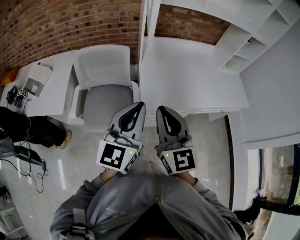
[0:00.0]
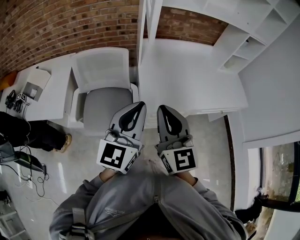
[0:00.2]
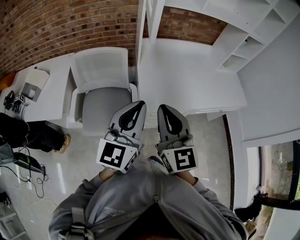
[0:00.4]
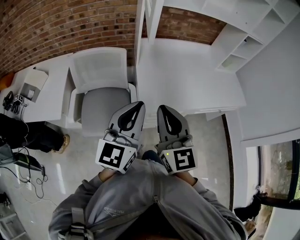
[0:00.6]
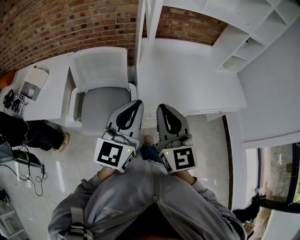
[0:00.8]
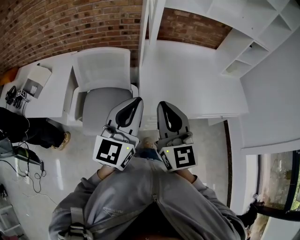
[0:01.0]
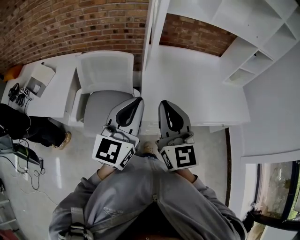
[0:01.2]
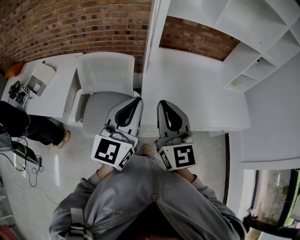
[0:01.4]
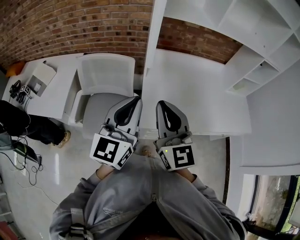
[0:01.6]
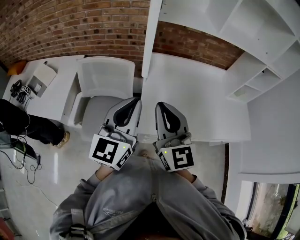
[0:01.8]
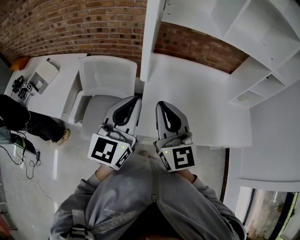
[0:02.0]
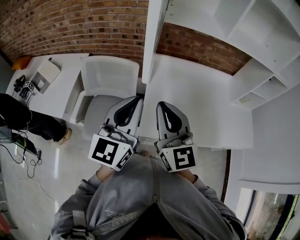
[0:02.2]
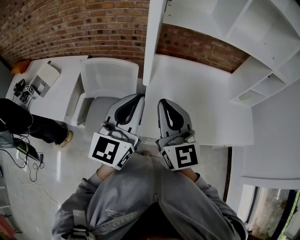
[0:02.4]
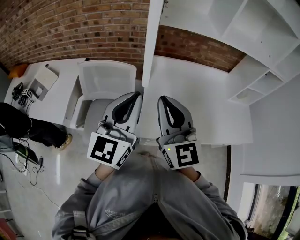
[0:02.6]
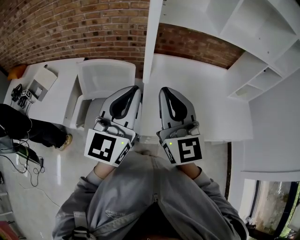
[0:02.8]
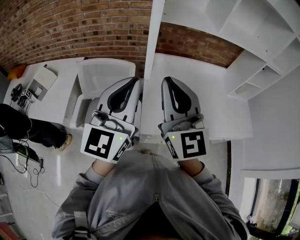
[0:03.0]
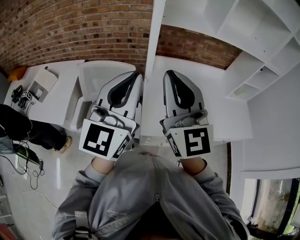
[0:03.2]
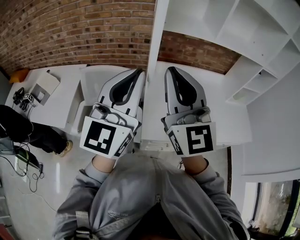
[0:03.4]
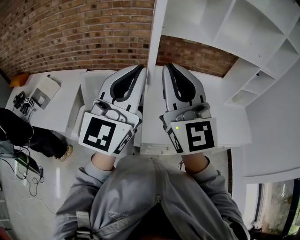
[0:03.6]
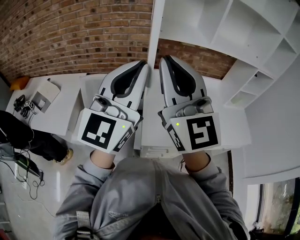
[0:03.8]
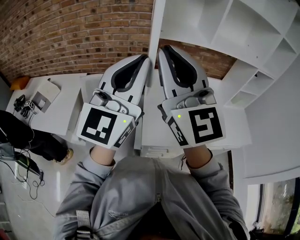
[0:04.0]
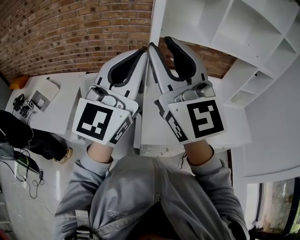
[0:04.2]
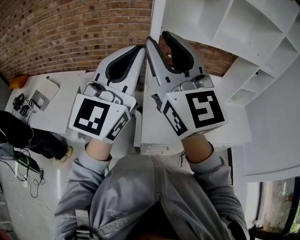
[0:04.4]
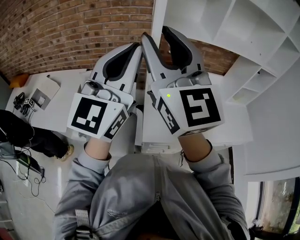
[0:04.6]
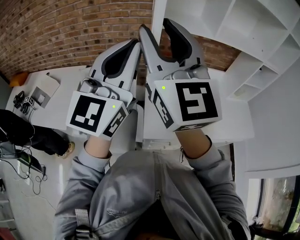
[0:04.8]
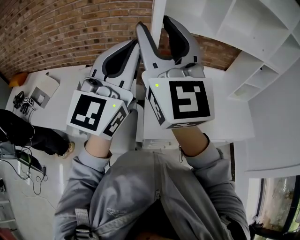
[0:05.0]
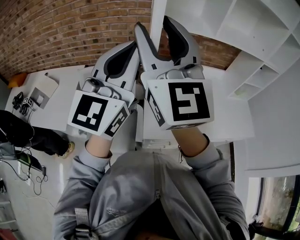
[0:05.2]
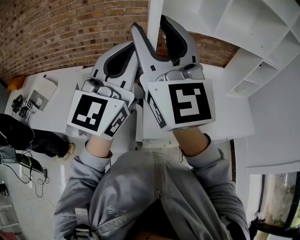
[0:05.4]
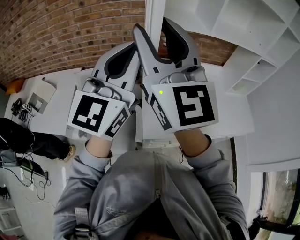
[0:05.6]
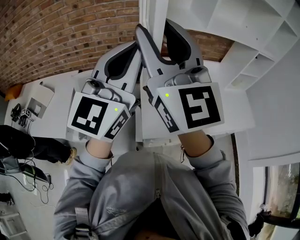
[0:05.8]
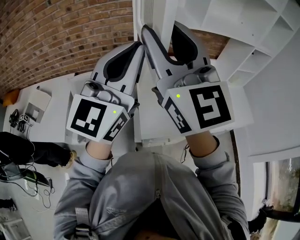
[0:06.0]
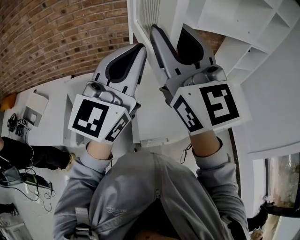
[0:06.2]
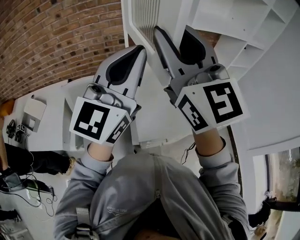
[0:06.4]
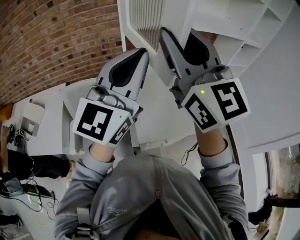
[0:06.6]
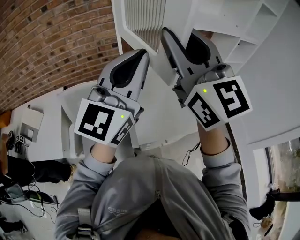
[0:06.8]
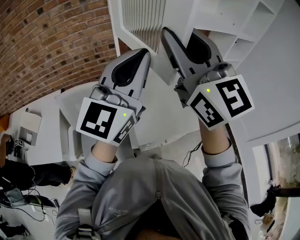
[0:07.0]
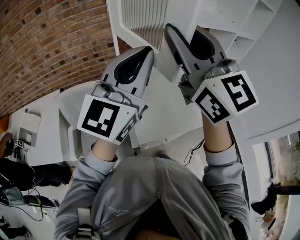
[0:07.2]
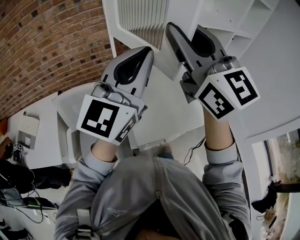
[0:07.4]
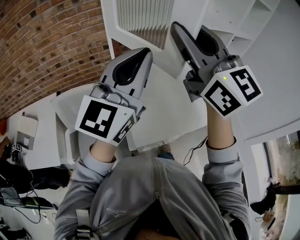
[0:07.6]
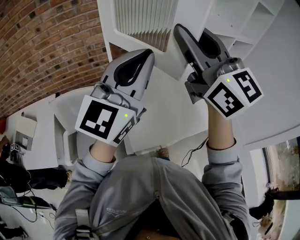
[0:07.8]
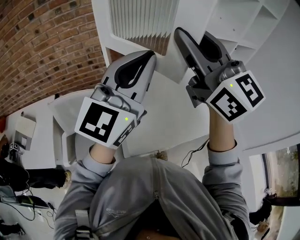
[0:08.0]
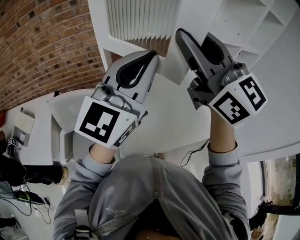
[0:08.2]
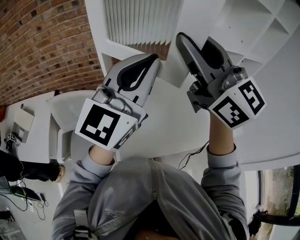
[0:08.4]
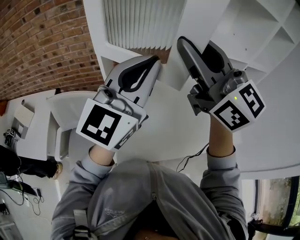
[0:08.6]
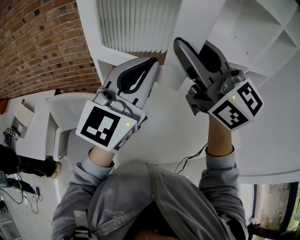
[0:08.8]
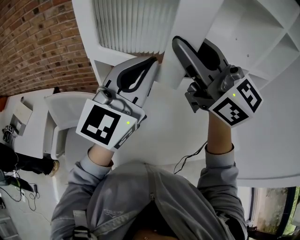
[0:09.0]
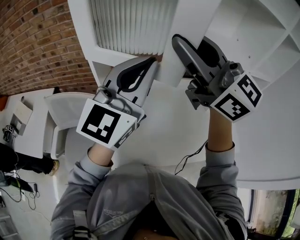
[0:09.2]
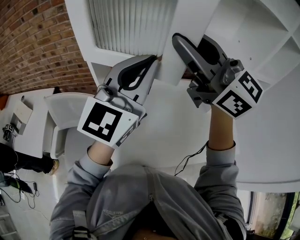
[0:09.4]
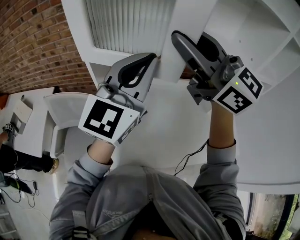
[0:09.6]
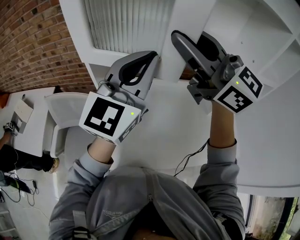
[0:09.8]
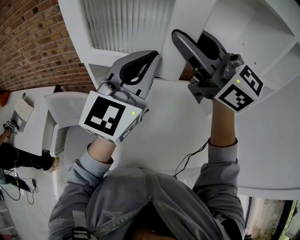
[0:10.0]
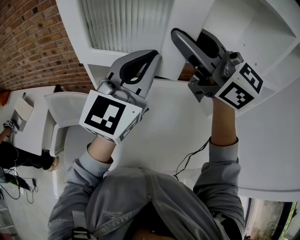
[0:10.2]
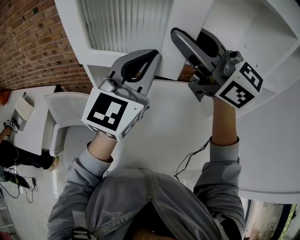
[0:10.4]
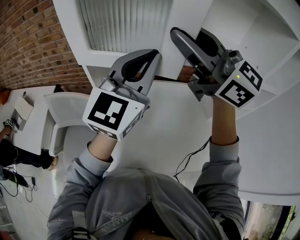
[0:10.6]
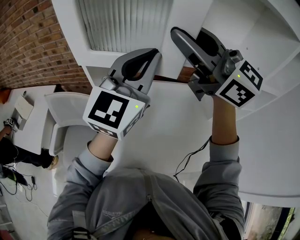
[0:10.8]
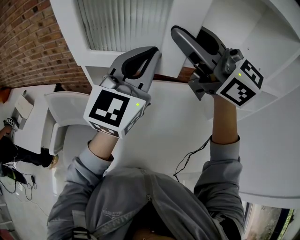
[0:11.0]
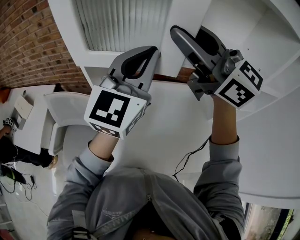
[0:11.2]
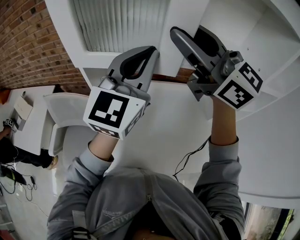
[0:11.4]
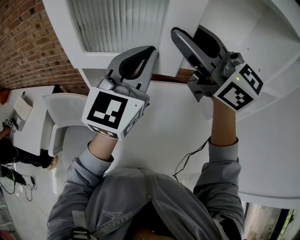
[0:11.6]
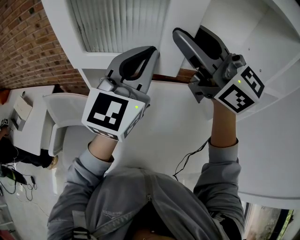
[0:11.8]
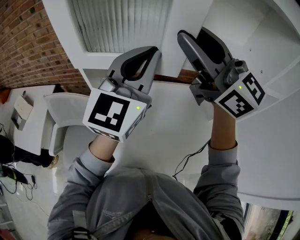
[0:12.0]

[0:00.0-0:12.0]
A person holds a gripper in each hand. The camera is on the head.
0:00.0 to 0:01.6: The two grippers go roughly 10 cm forward.
0:01.6 to 0:03.0: The left gripper shifts some 10 cm upward, while the right gripper moves upward and forward, some 10 cm.
0:03.0 to 0:04.4: The grippers both shift upward by about 10 cm. The right gripper opens.
0:04.4 to 0:06.0: The grippers stay close to where they were, moving slightly.
0:06.0 to 0:07.6: The right gripper is displaced to the right and forward by approximately 10 cm, while the left gripper moves to the right, some 5 cm.
0:07.6 to 0:09.0: Both grippers move forward and to the right, approximately 15 cm. The right gripper swivels approximately 20 degrees.
0:09.0 to 0:10.4: The grippers both shift forward by roughly 5 cm.
0:10.4 to 0:12.0: There are only small adjustments of the grippers.

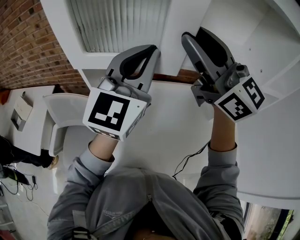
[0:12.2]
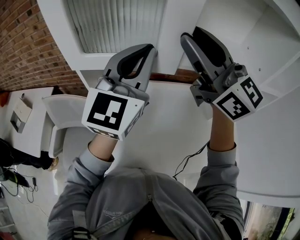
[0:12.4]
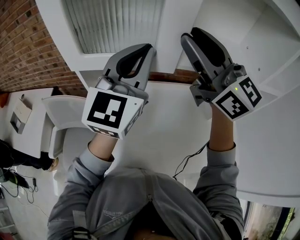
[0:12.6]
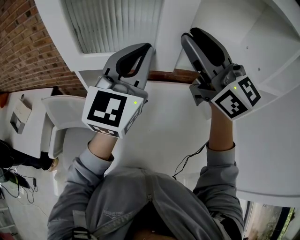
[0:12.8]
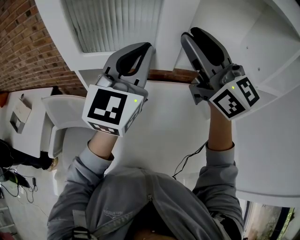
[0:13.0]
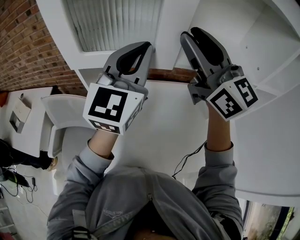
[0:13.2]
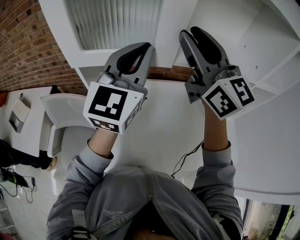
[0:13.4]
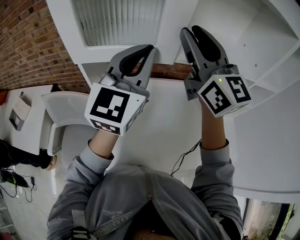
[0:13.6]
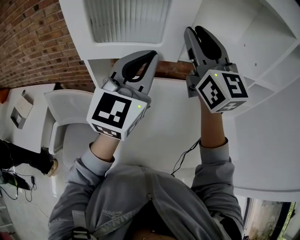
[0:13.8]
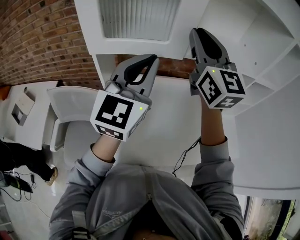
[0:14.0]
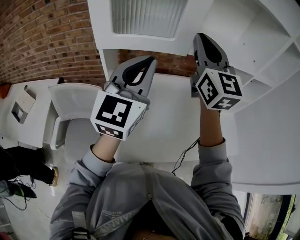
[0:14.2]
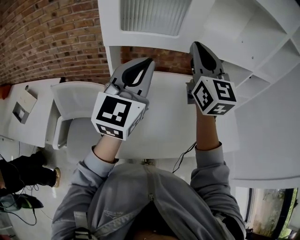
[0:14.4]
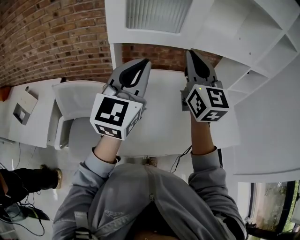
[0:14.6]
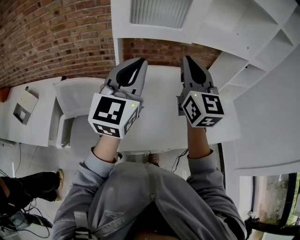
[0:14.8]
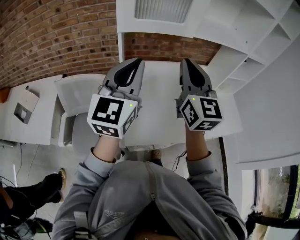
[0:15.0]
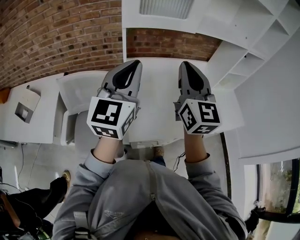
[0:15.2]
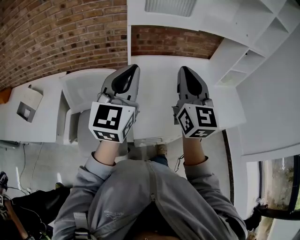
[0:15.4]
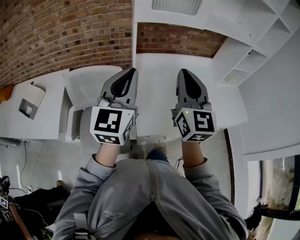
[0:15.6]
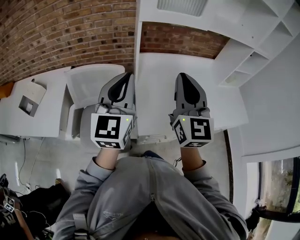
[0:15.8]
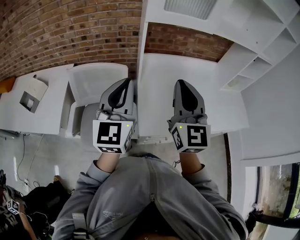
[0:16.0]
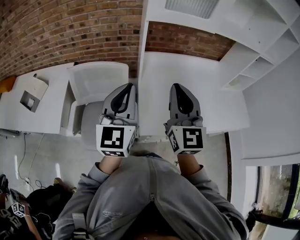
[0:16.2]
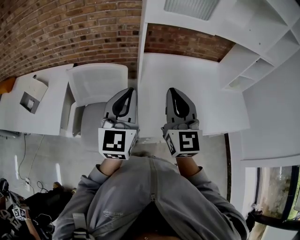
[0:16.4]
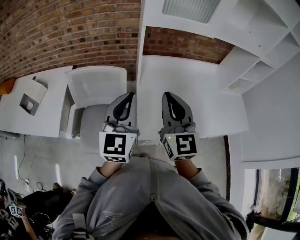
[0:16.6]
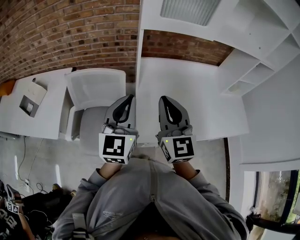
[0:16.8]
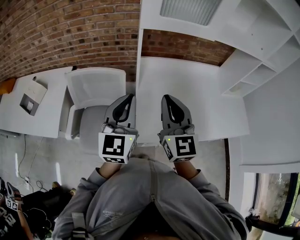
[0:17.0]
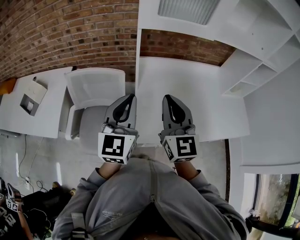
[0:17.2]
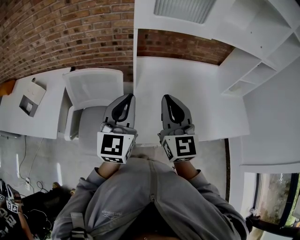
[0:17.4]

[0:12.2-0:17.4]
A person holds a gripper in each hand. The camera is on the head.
0:12.2 to 0:14.0: The left gripper moves backward, roughly 5 cm. Meanwhile the right gripper swivels roughly 30 degrees.
0:14.0 to 0:15.6: The left gripper is displaced backward, to the left and downward by roughly 25 cm. Meanwhile the right gripper is displaced backward, downward and to the left by roughly 30 cm.
0:15.6 to 0:17.4: Both grippers move downward, some 5 cm.

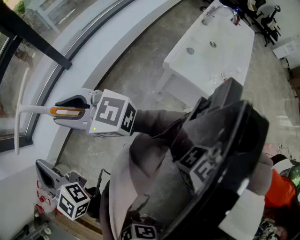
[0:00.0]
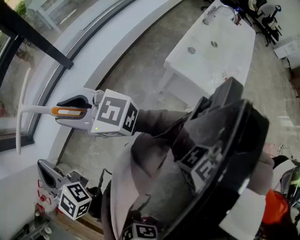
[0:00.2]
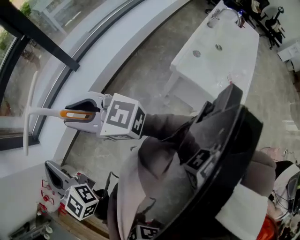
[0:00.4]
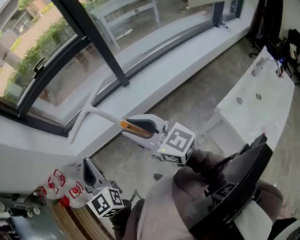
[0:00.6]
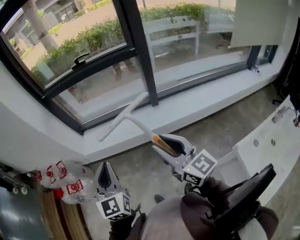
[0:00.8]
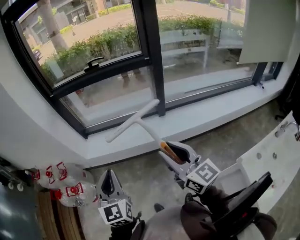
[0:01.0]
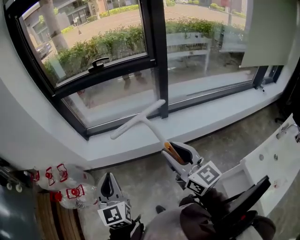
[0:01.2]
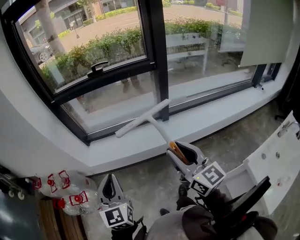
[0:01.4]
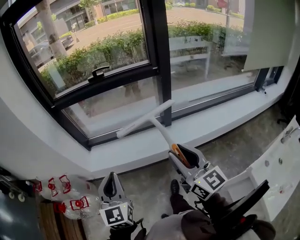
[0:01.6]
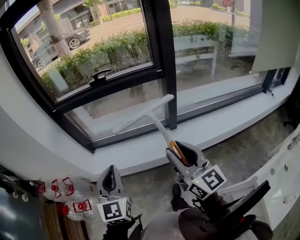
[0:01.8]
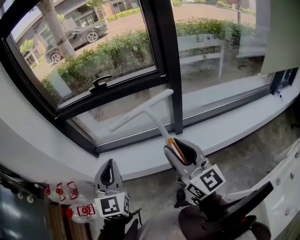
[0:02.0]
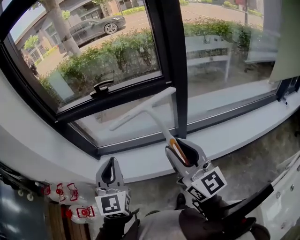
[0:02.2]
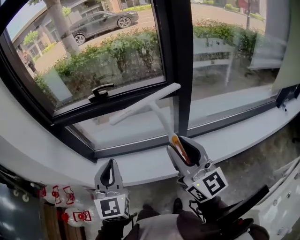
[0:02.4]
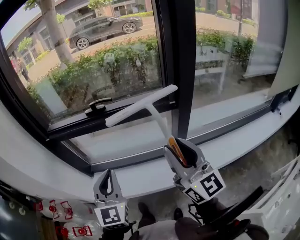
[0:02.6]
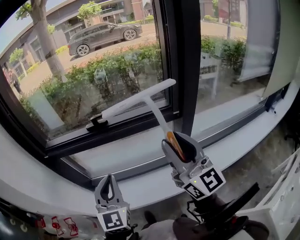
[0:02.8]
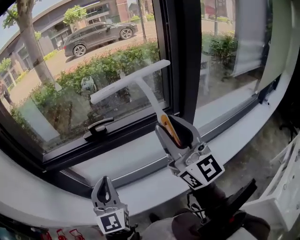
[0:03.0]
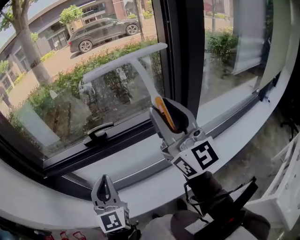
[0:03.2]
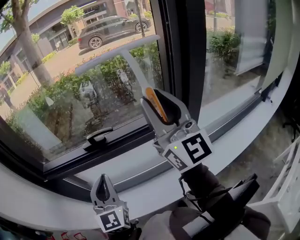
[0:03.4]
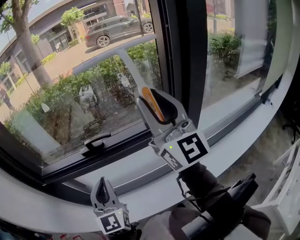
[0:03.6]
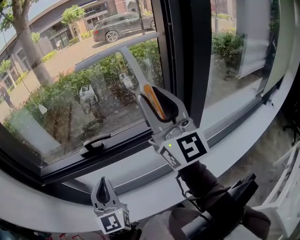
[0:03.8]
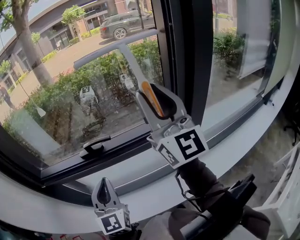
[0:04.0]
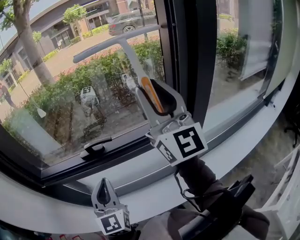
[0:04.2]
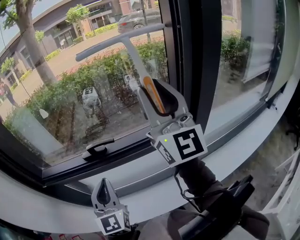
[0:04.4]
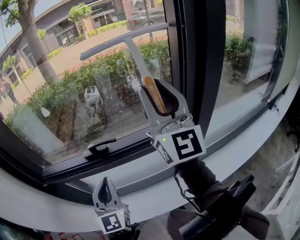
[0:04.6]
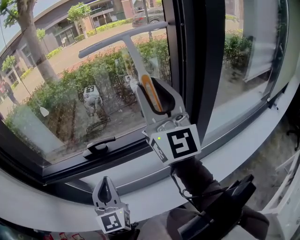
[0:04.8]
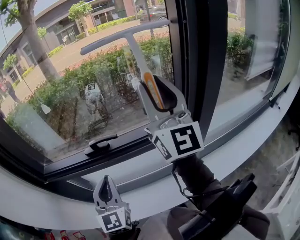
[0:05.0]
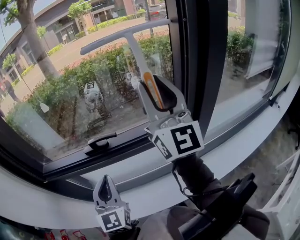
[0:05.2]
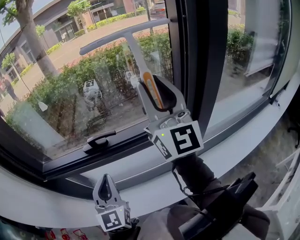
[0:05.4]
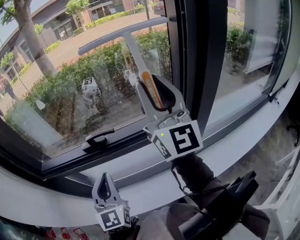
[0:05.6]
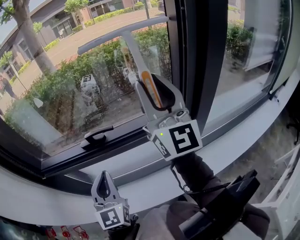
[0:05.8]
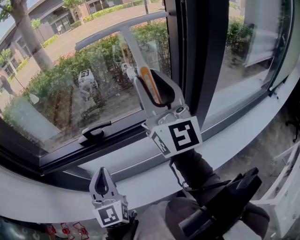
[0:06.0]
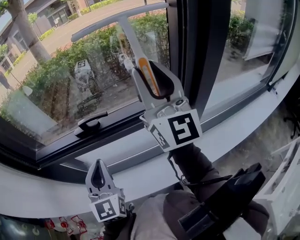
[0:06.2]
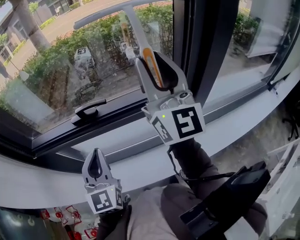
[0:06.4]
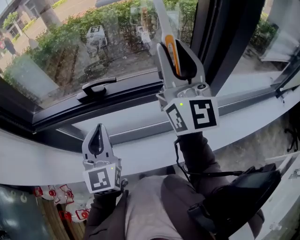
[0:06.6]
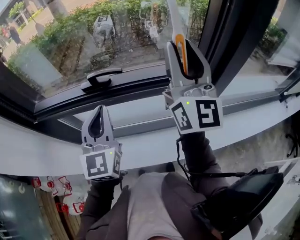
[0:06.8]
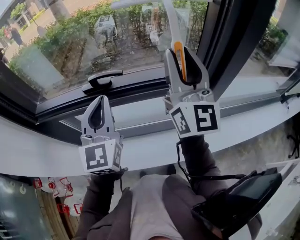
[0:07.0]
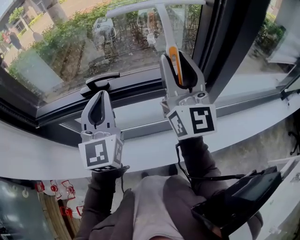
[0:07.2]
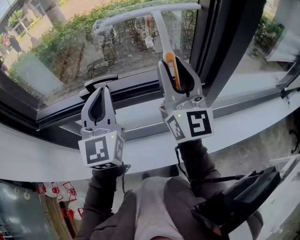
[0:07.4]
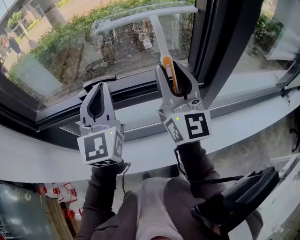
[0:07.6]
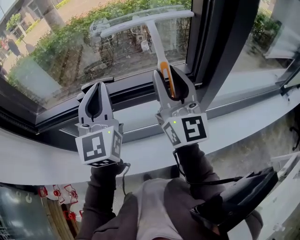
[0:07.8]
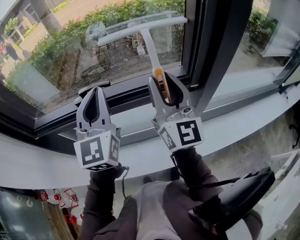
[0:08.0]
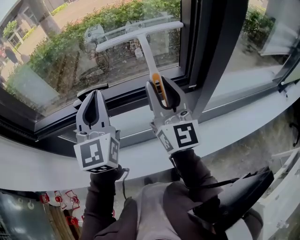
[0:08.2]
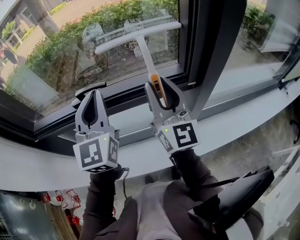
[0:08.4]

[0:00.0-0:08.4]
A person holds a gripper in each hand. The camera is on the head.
0:00.0 to 0:01.4: The left gripper is displaced to the left and forward by roughly 15 cm, while the right gripper is displaced forward and to the left by some 10 cm.
0:01.4 to 0:02.8: The two grippers travel together, forward, roughly 40 cm. The right gripper changes its angle by some 20 degrees.
0:02.8 to 0:04.2: The right gripper moves forward and upward, approximately 25 cm. The left gripper goes roughly 15 cm forward.
0:04.2 to 0:05.6: The grippers move only a little.
0:05.6 to 0:07.0: The left gripper is displaced forward by about 5 cm. Meanwhile the right gripper heads downward, covering some 10 cm.
0:07.0 to 0:08.4: The left gripper ends up roughly 5 cm from where it was, while the right gripper goes some 10 cm downward.
